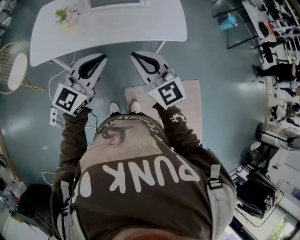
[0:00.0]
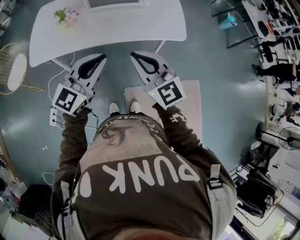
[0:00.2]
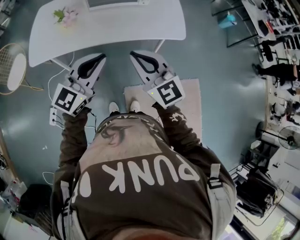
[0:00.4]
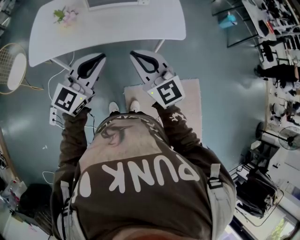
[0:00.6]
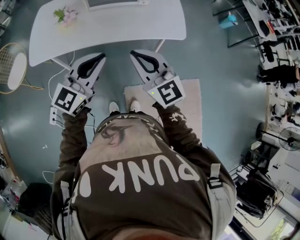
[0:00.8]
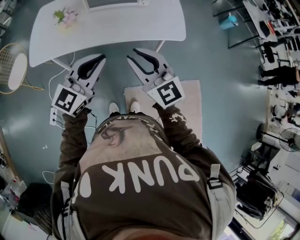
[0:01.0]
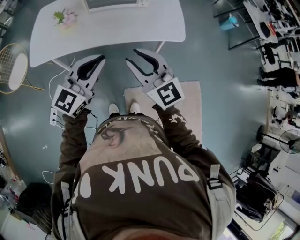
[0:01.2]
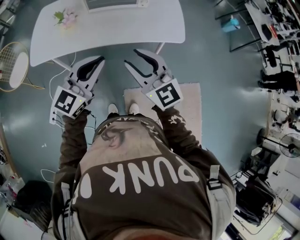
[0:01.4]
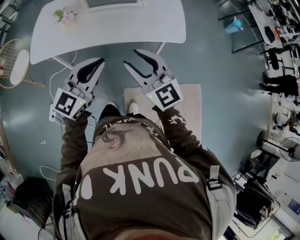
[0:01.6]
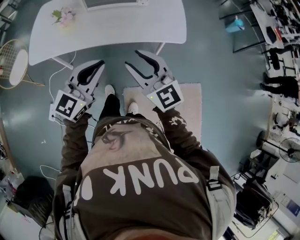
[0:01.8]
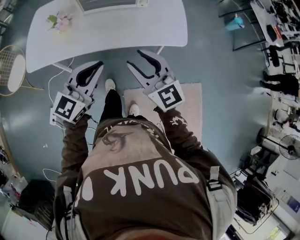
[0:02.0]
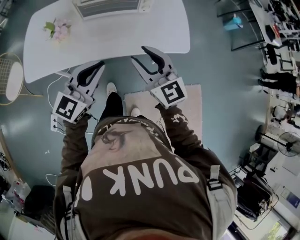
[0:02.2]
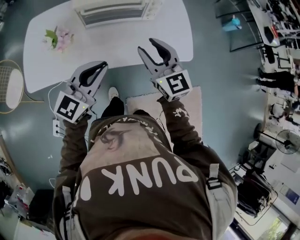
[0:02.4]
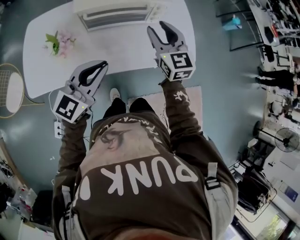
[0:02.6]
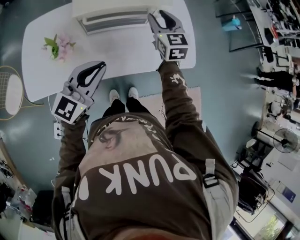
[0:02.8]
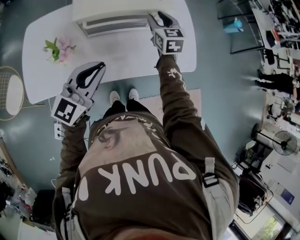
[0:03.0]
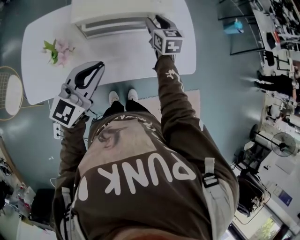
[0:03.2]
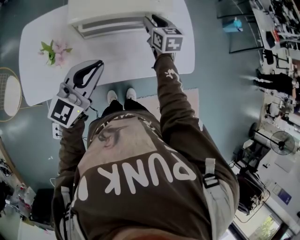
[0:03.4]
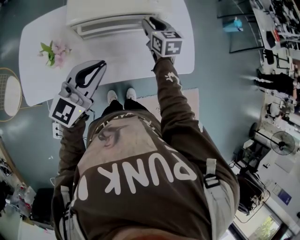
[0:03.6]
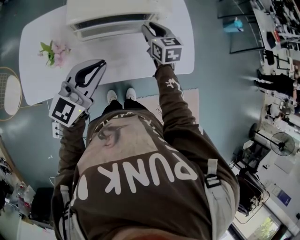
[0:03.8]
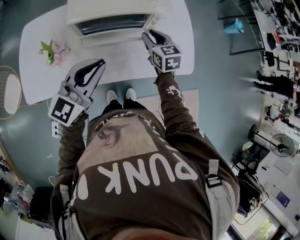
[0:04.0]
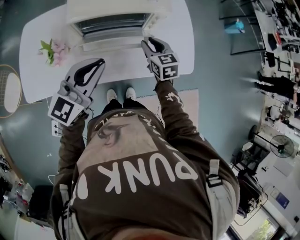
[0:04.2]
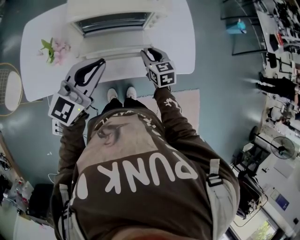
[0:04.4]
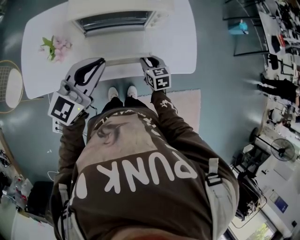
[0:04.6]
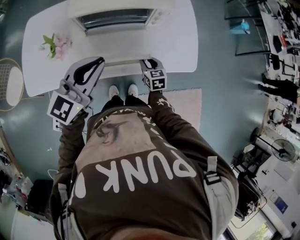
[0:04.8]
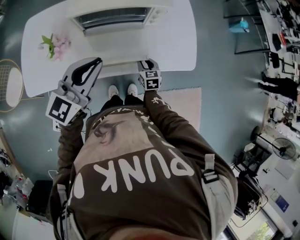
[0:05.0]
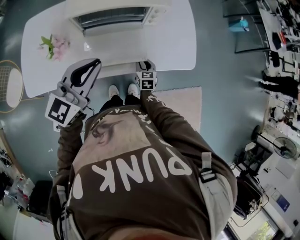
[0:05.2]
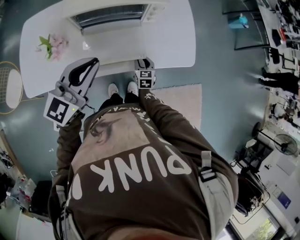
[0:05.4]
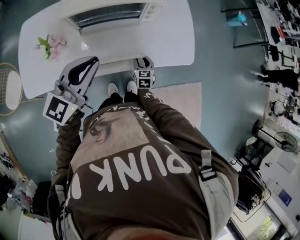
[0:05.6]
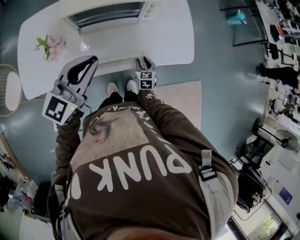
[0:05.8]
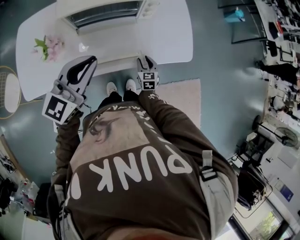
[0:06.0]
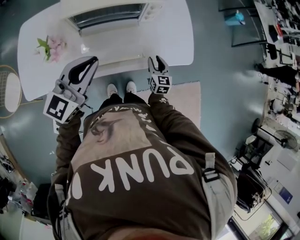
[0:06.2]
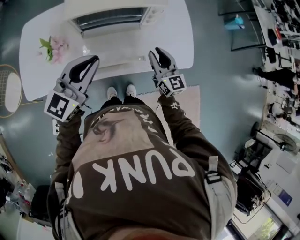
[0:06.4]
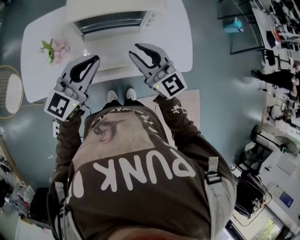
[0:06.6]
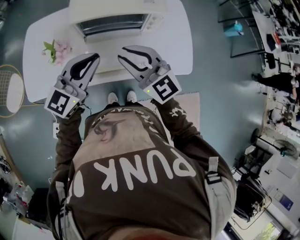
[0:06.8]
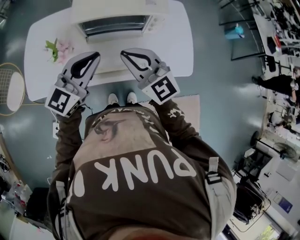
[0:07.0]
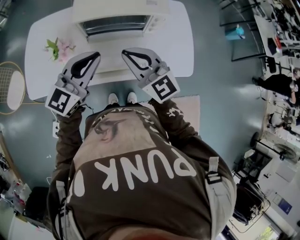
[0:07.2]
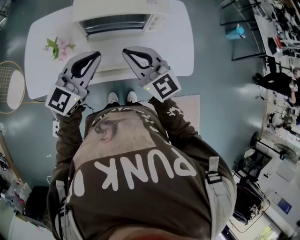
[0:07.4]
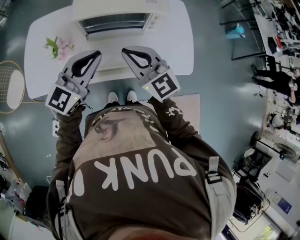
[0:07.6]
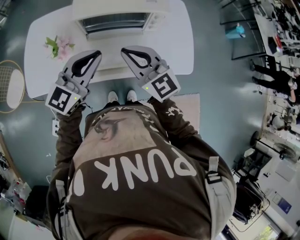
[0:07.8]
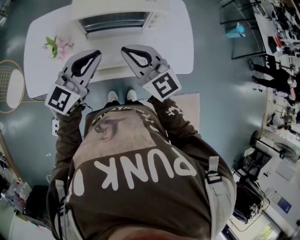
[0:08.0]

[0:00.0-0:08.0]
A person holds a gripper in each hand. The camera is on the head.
0:00.0 to 0:01.6: The two grippers go about 5 cm to the right. The right gripper opens up.
0:01.6 to 0:03.2: The right gripper goes approximately 50 cm forward, and turns by approximately 40 degrees. The left gripper travels forward and to the left by roughly 30 cm.
0:03.2 to 0:04.8: The right gripper shifts roughly 25 cm downward and backward.
0:04.8 to 0:06.4: The right gripper shifts some 15 cm upward, and tips its fingers upward by some 30 degrees.
0:06.4 to 0:08.0: The right gripper goes some 20 cm upward and to the left, rotates some 30 degrees, and closes its fingers.

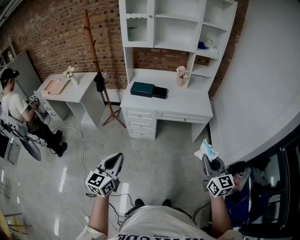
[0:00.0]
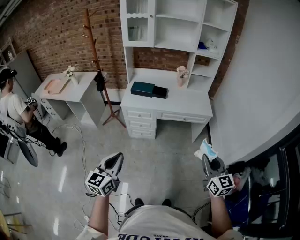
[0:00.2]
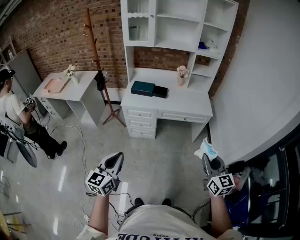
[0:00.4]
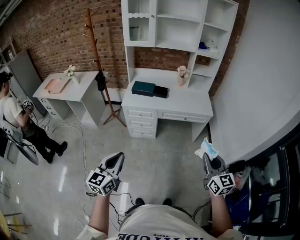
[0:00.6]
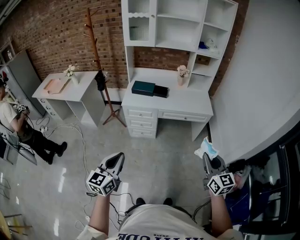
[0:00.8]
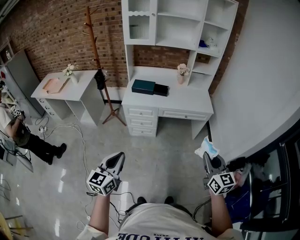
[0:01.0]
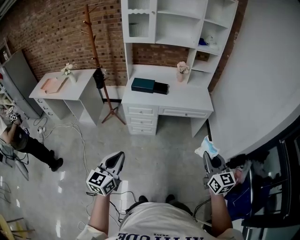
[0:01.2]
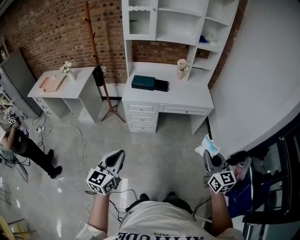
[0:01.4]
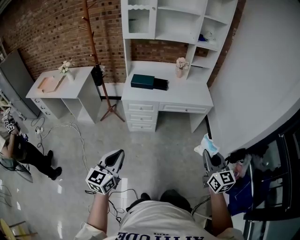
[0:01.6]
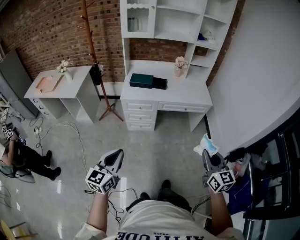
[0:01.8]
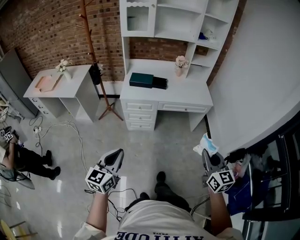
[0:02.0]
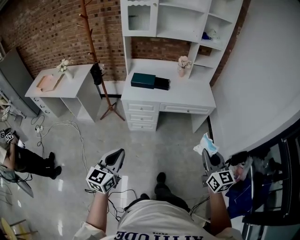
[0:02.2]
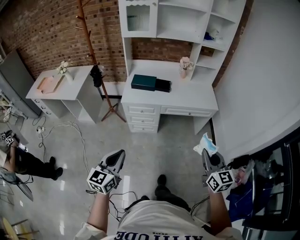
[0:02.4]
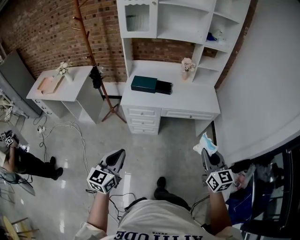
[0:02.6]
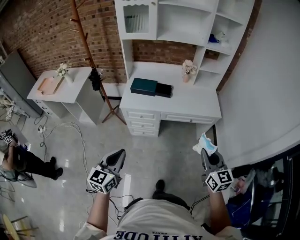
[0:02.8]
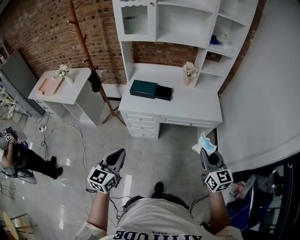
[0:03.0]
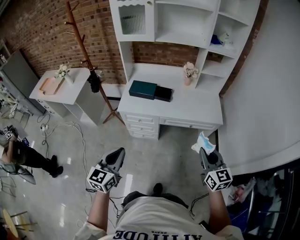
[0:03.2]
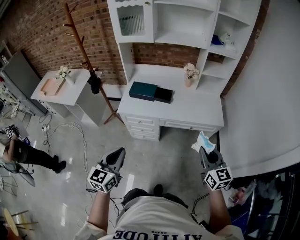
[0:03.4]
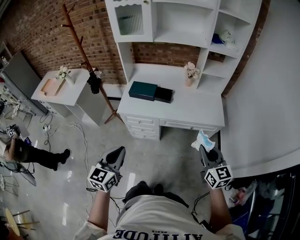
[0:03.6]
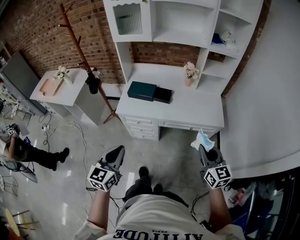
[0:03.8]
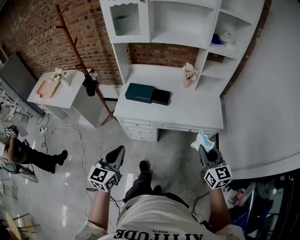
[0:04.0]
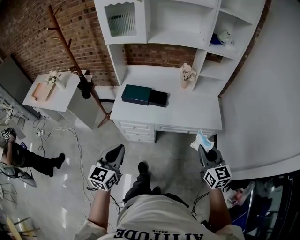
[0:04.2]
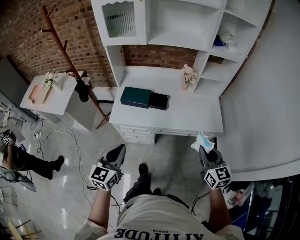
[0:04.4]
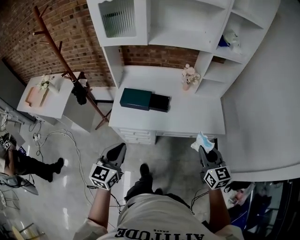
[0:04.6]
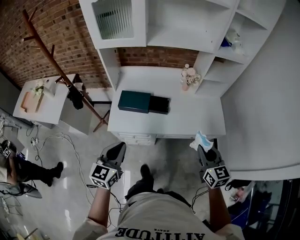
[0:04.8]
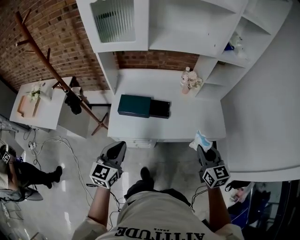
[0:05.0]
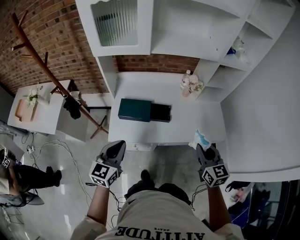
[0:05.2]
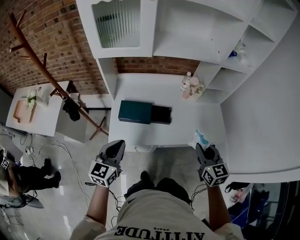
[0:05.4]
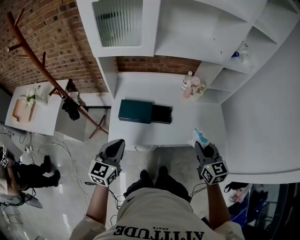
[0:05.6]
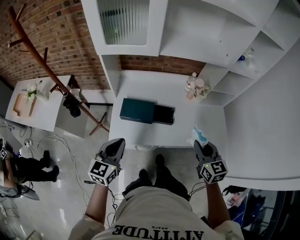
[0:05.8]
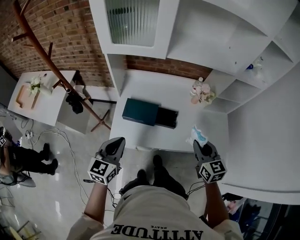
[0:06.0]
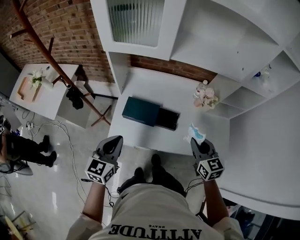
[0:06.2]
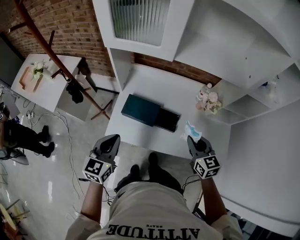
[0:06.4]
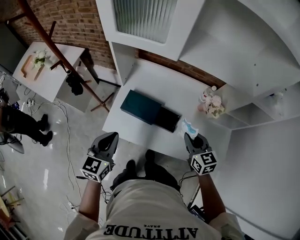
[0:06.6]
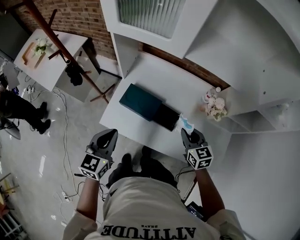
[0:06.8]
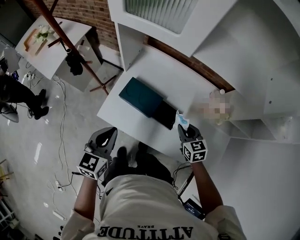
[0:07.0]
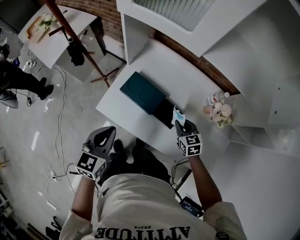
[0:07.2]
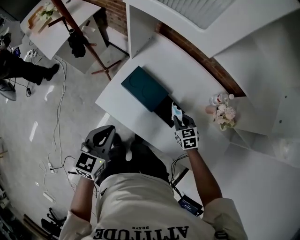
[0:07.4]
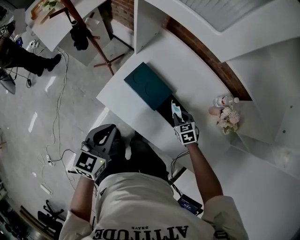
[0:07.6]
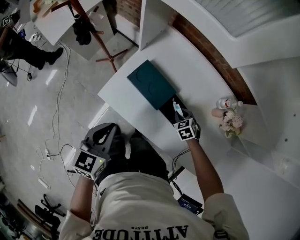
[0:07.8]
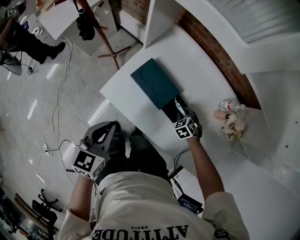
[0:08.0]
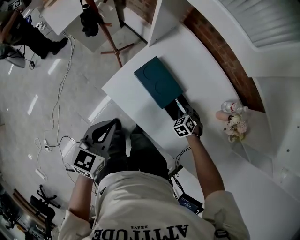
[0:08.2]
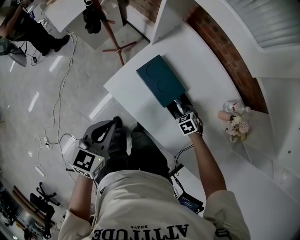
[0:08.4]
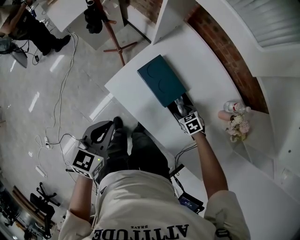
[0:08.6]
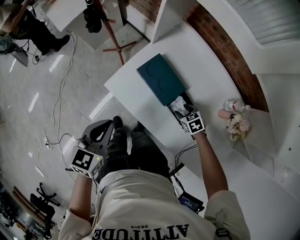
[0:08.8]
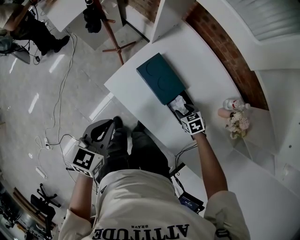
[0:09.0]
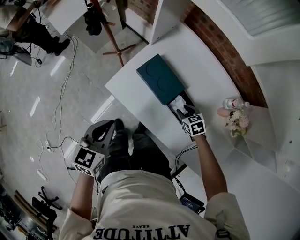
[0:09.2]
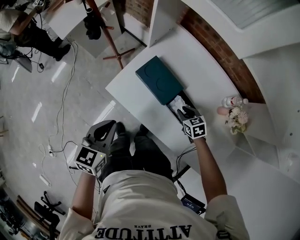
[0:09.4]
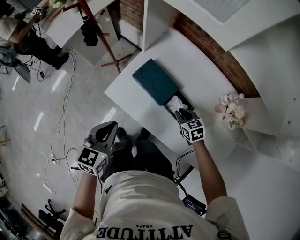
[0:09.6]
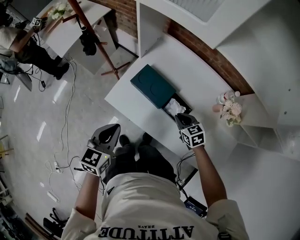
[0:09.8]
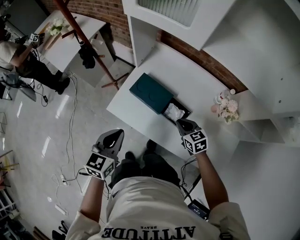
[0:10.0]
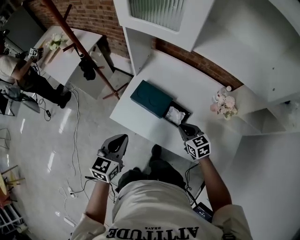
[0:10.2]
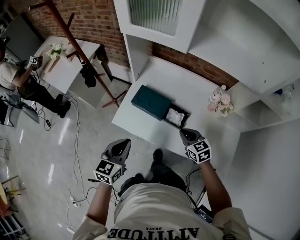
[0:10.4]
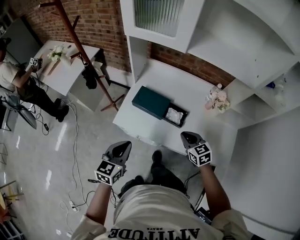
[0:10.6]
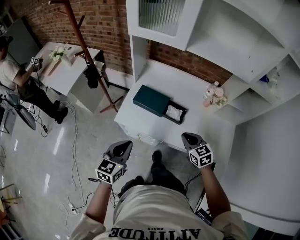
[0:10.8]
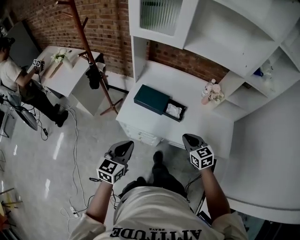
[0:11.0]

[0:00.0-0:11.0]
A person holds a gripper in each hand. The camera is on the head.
0:00.0 to 0:01.6: Both grippers travel together to the left, some 10 cm.
0:01.6 to 0:03.2: The grippers both shift forward by some 25 cm.
0:03.2 to 0:04.8: Both grippers travel together forward, roughly 25 cm.
0:04.8 to 0:06.2: The grippers both shift forward and to the left by some 20 cm.
0:06.2 to 0:07.8: The right gripper is displaced downward and forward by roughly 35 cm, and tilts its fingers approximately 40 degrees downward. Meanwhile the left gripper travels downward by some 10 cm, and rotates roughly 30 degrees.
0:07.8 to 0:09.4: The right gripper opens, then closes again.
0:09.4 to 0:11.0: The left gripper ends up about 15 cm from where it was, and swivels approximately 30 degrees. Meanwhile the right gripper ends up about 30 cm from where it was, changes its angle by approximately 30 degrees, and closes.

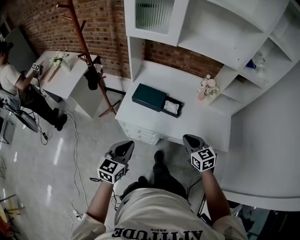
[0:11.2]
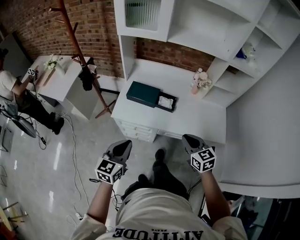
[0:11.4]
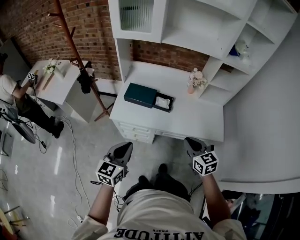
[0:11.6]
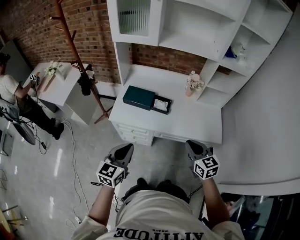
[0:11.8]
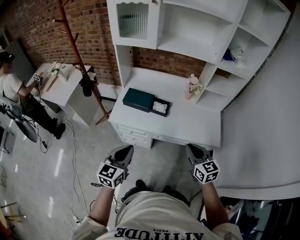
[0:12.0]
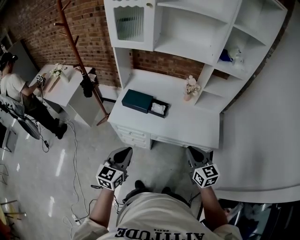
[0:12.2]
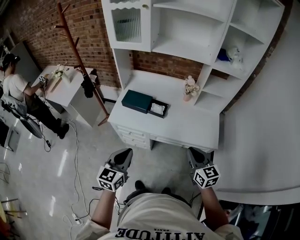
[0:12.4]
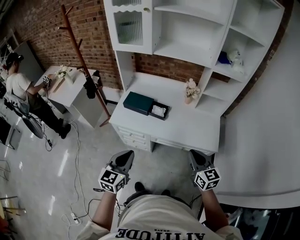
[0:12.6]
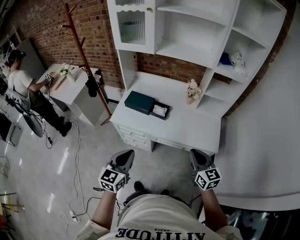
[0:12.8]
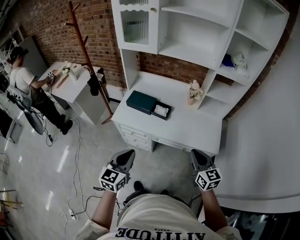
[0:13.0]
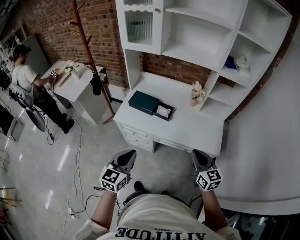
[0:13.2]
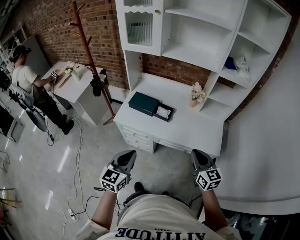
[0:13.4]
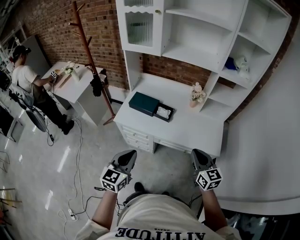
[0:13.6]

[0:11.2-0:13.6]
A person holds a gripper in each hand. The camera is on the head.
0:11.2 to 0:12.4: The grippers both shift to the right, backward and upward by some 15 cm.
0:12.4 to 0:13.6: There are only small adjustments of the grippers.

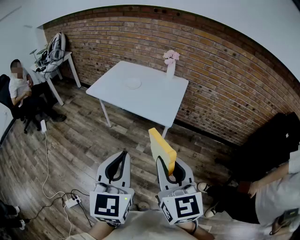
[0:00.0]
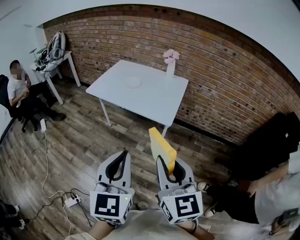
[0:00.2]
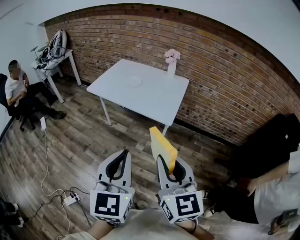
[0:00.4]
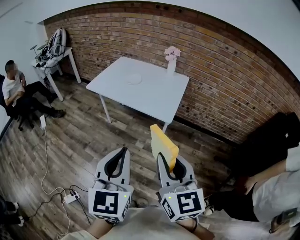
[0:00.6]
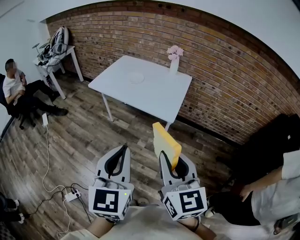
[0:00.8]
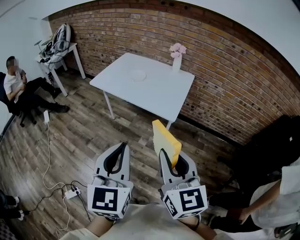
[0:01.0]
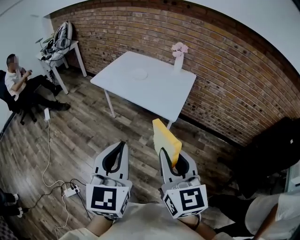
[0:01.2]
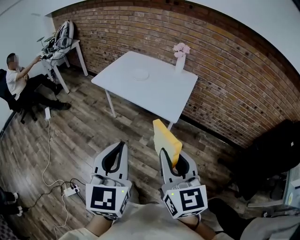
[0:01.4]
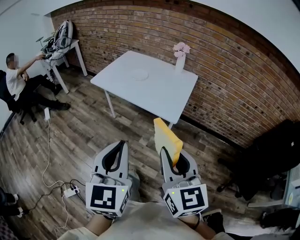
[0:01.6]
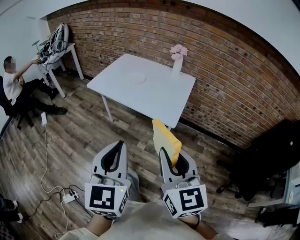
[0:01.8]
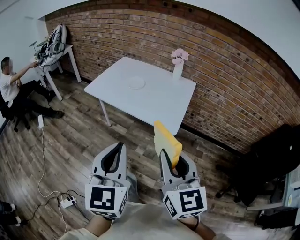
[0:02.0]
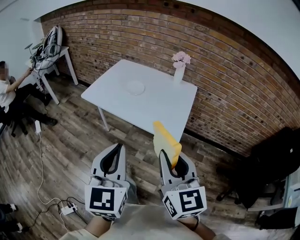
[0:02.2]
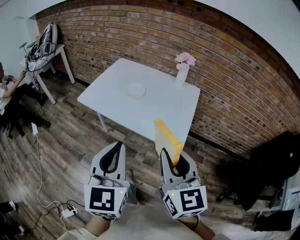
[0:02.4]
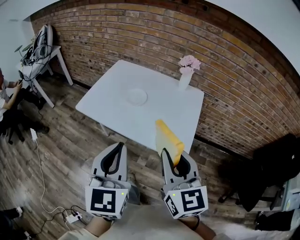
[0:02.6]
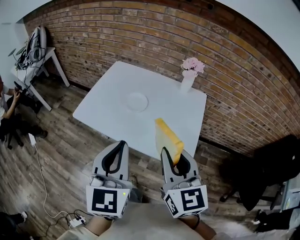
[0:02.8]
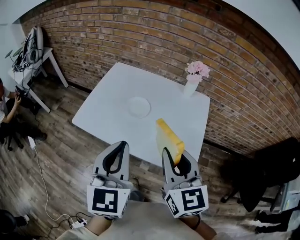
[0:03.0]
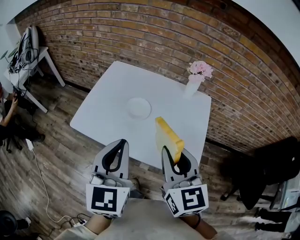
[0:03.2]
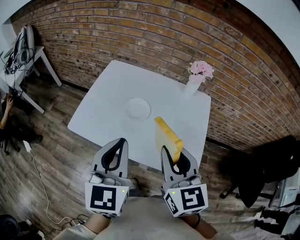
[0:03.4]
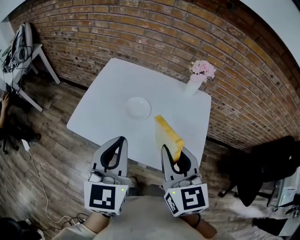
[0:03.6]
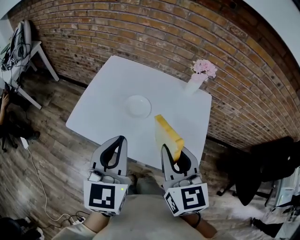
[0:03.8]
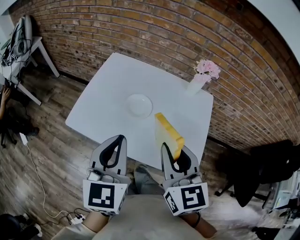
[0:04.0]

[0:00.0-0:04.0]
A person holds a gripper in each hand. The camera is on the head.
0:00.0 to 0:01.4: The grippers move only a little.
0:01.4 to 0:02.6: Both grippers travel together forward, some 30 cm.
0:02.6 to 0:04.0: The grippers both shift forward by roughly 20 cm.
